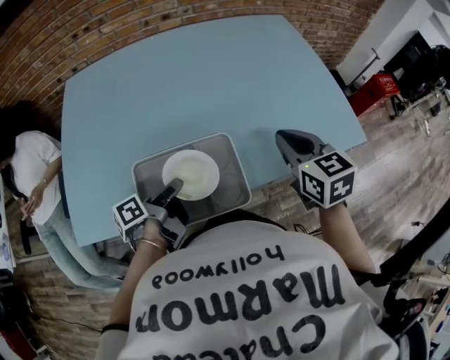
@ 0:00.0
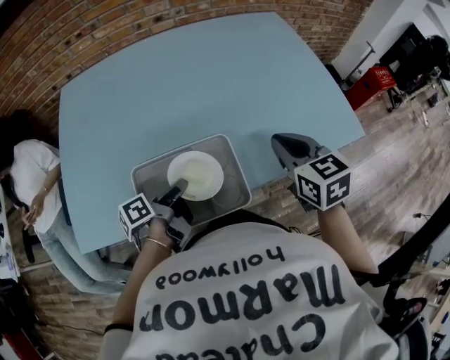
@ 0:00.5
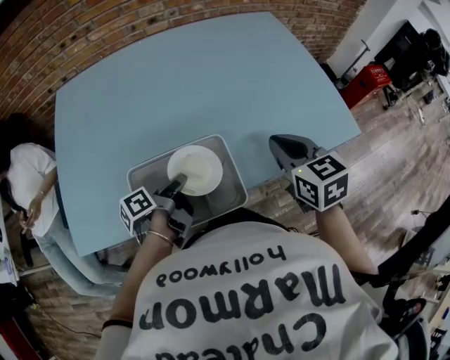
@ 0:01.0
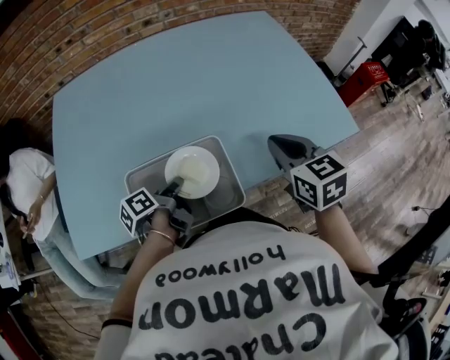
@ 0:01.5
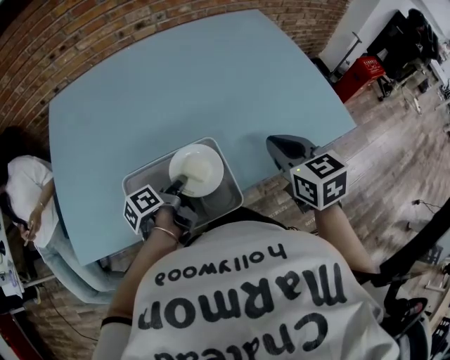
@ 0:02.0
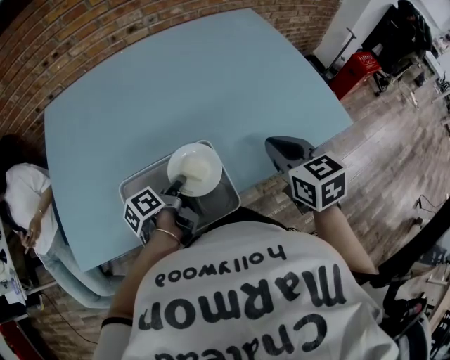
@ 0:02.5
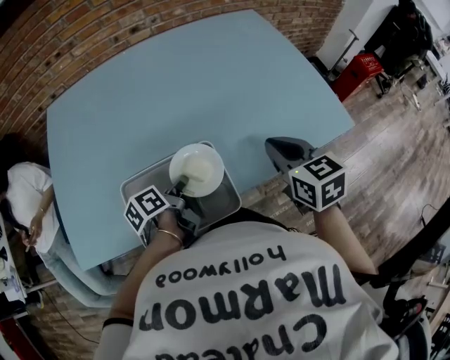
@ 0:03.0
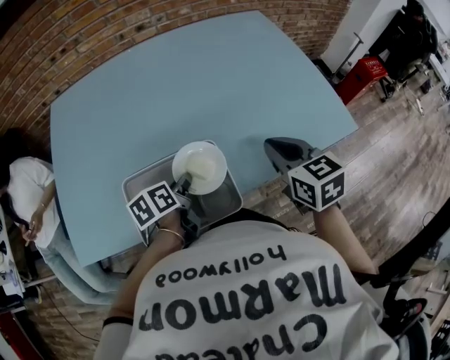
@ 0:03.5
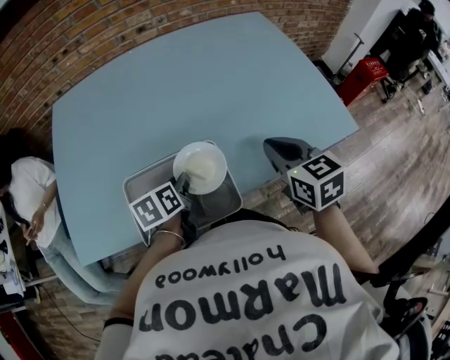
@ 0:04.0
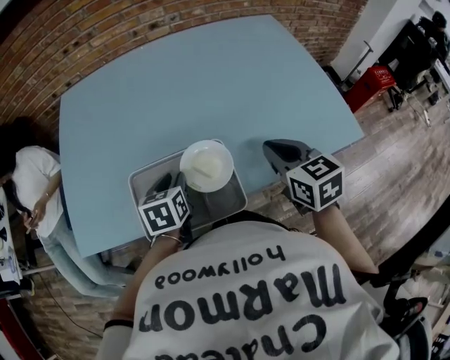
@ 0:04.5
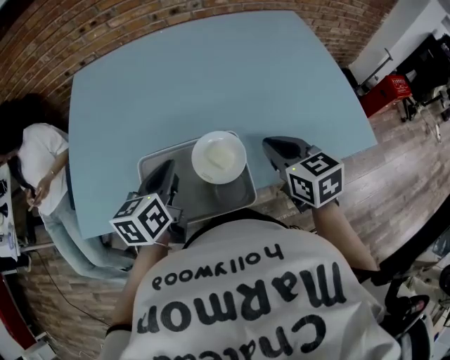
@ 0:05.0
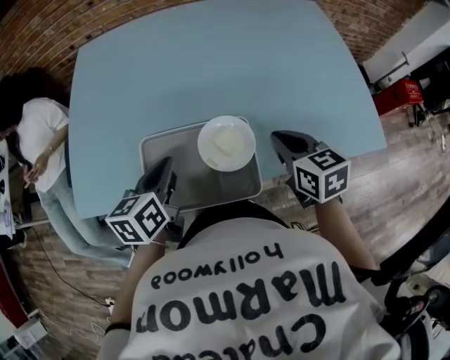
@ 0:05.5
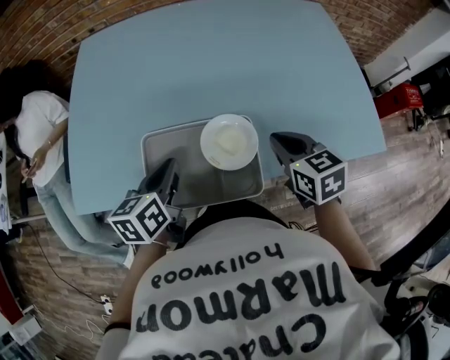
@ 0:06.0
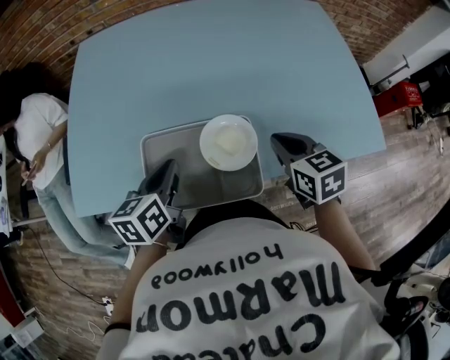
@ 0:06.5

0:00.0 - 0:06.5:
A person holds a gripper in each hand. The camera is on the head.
0:04.5 - 0:06.5: The right gripper travels downward by about 5 cm.

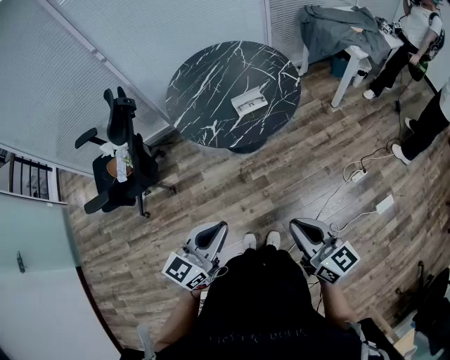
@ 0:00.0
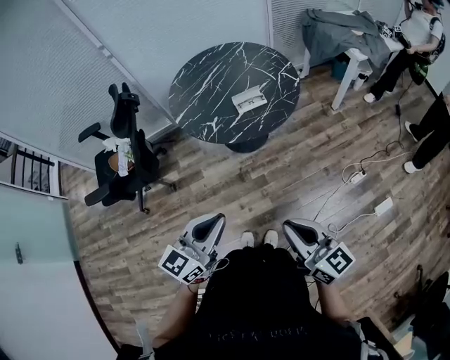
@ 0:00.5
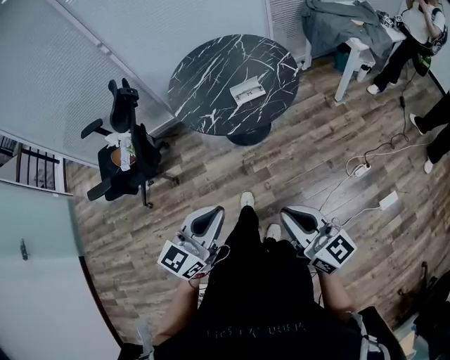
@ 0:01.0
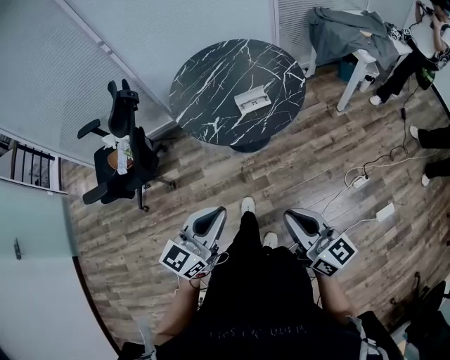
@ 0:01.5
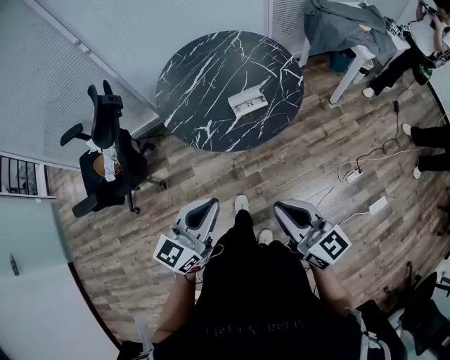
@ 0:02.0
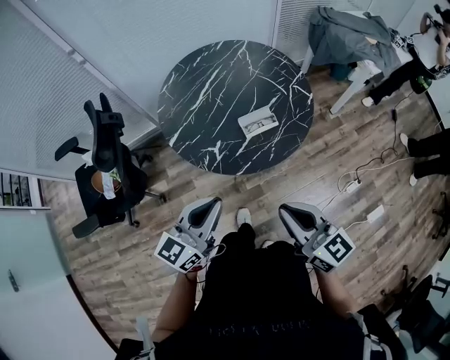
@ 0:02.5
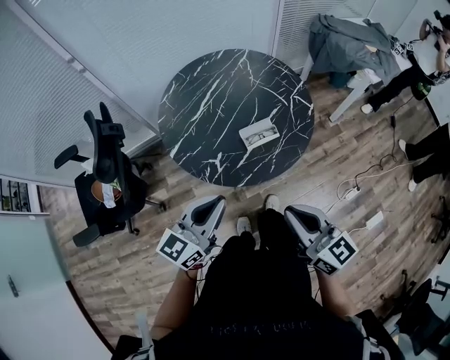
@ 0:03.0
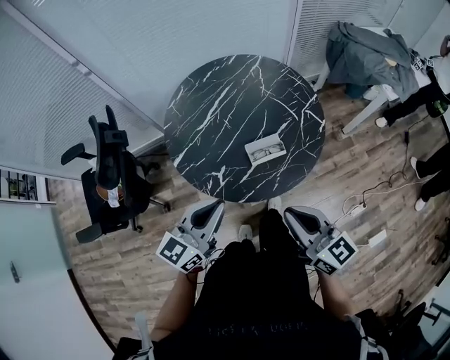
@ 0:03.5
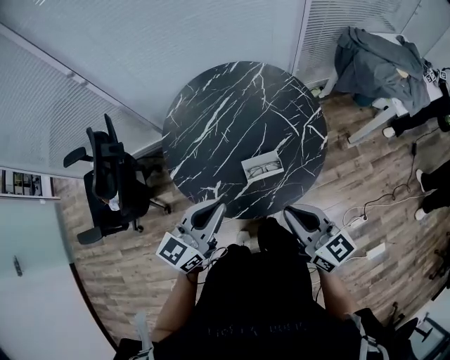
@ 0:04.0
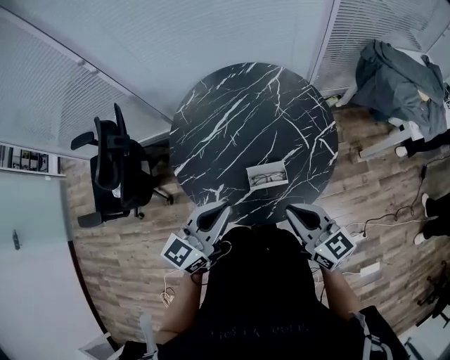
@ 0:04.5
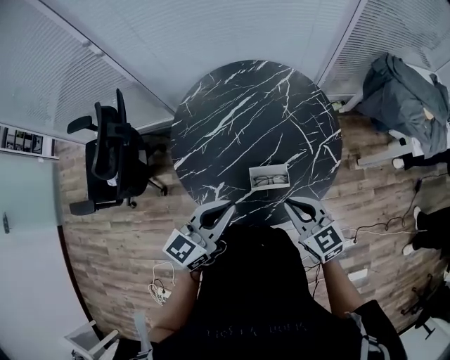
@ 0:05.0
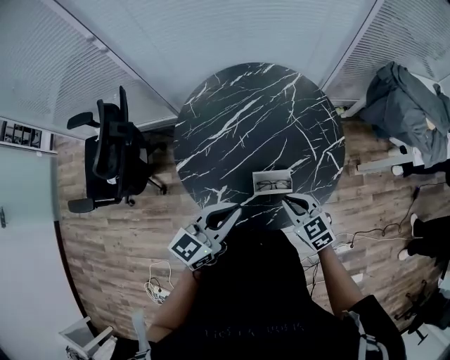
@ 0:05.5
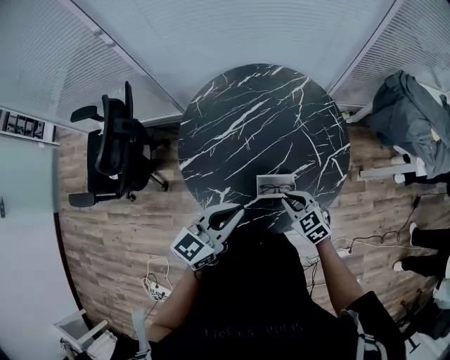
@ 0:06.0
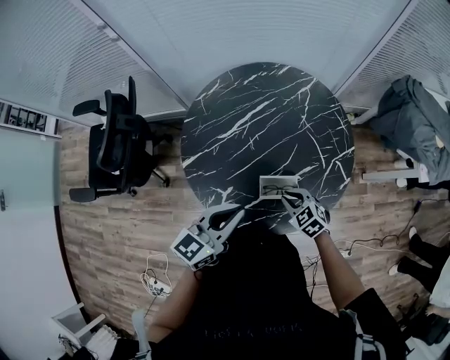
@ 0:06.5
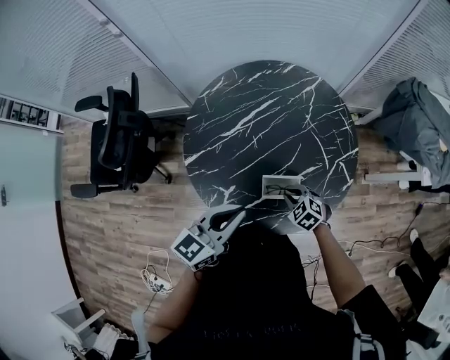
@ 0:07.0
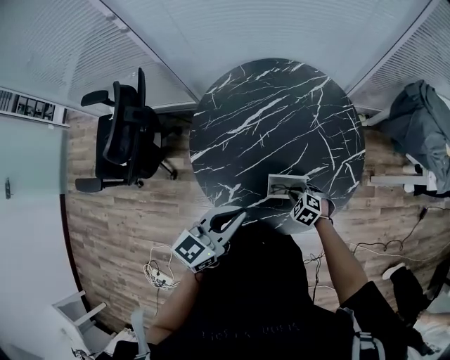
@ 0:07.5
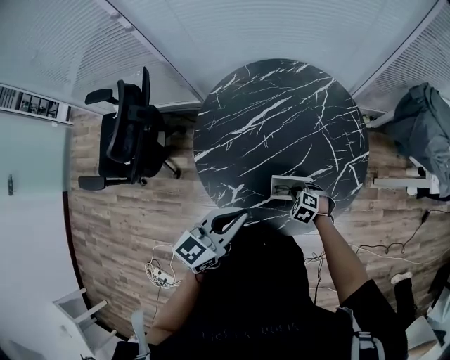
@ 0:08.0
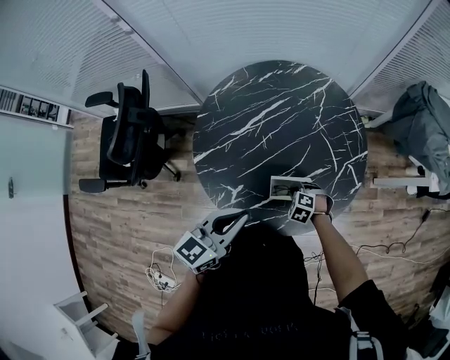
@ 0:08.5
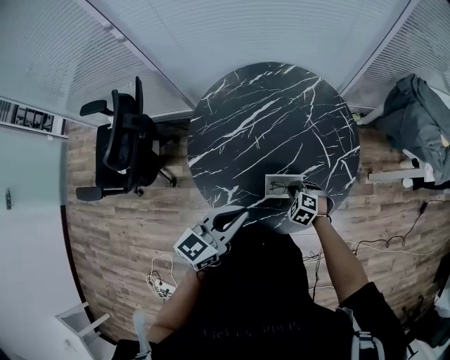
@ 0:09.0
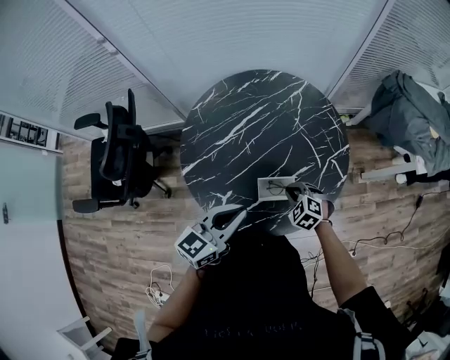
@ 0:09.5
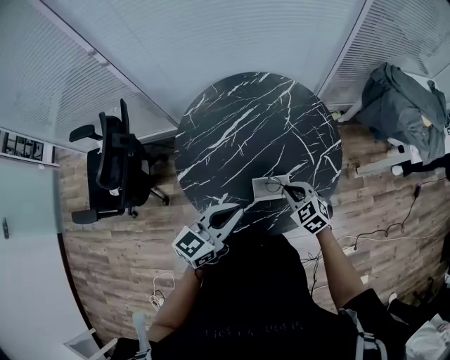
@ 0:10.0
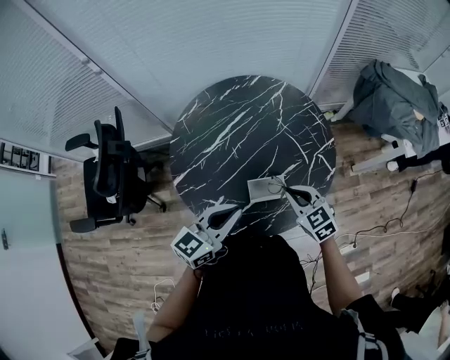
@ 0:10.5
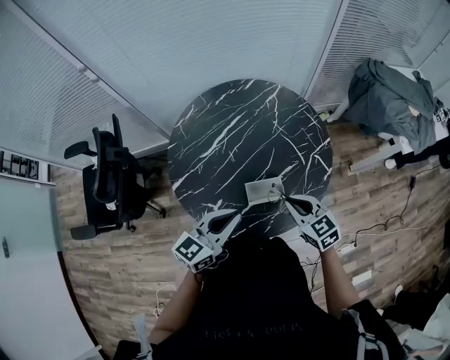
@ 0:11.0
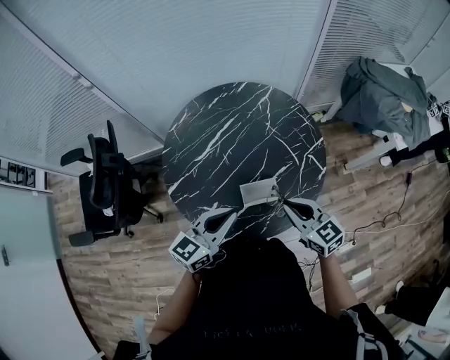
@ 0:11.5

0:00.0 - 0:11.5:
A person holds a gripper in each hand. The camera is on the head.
0:00.0 - 0:02.0: Both grippers move forward, some 10 cm.
0:02.0 - 0:04.0: The two grippers go approximately 30 cm forward.
0:04.0 - 0:06.0: The right gripper is displaced downward and forward by some 25 cm, and angles its fingers downward, by about 40 degrees. The left gripper moves roughly 5 cm.
0:06.0 - 0:07.5: The right gripper shifts roughly 10 cm downward, and changes its angle by about 30 degrees.
0:07.5 - 0:09.5: The right gripper travels upward by some 10 cm.
0:09.5 - 0:11.5: The right gripper is displaced upward by some 15 cm, and tilts its fingers approximately 40 degrees upward.

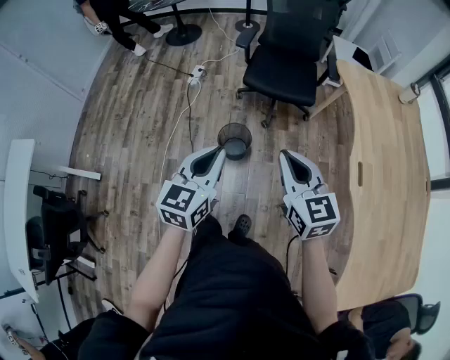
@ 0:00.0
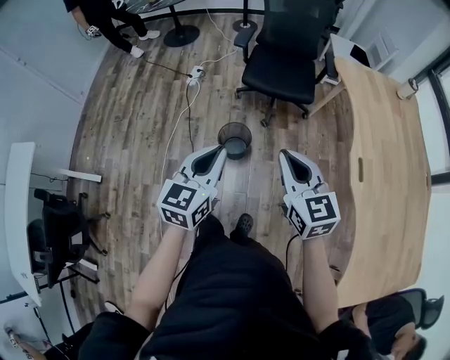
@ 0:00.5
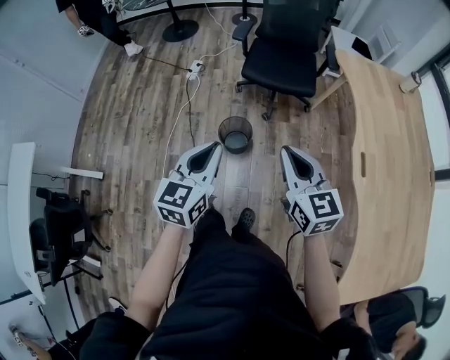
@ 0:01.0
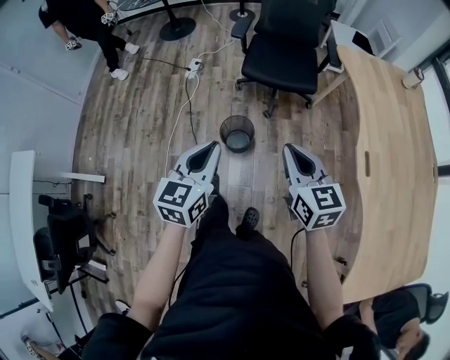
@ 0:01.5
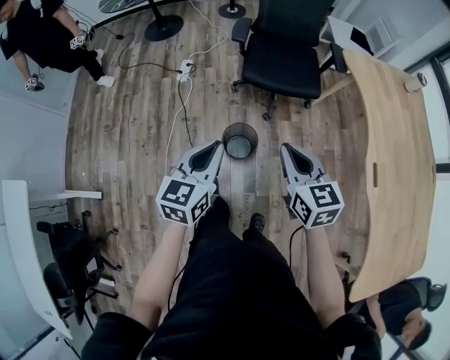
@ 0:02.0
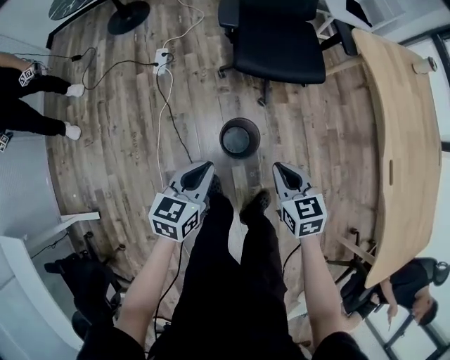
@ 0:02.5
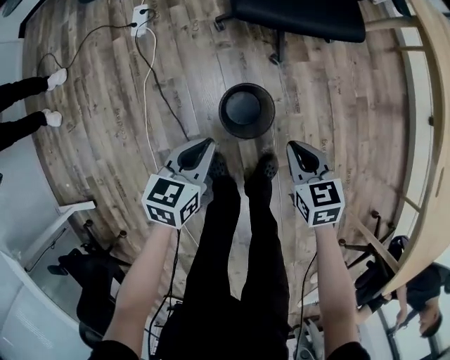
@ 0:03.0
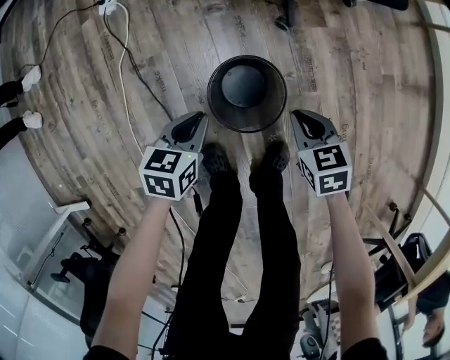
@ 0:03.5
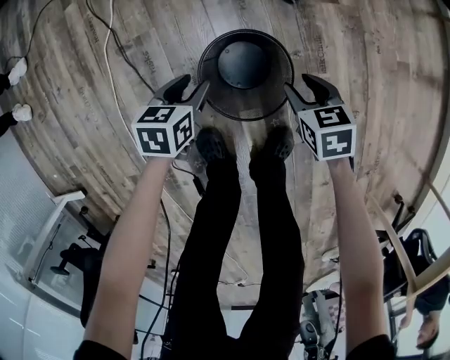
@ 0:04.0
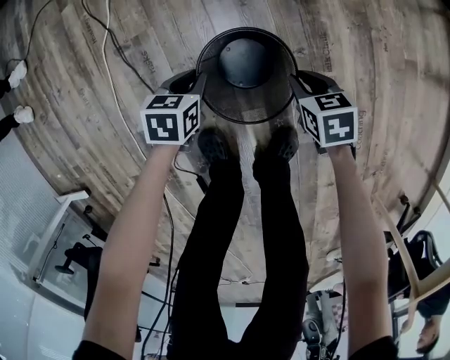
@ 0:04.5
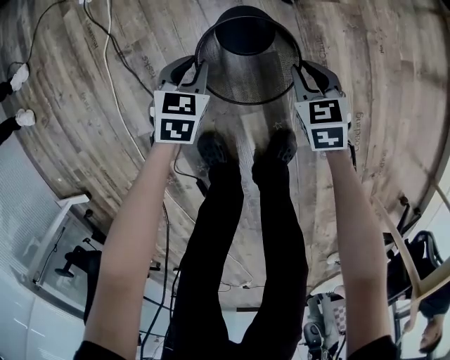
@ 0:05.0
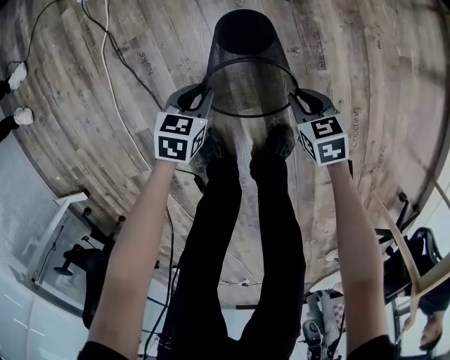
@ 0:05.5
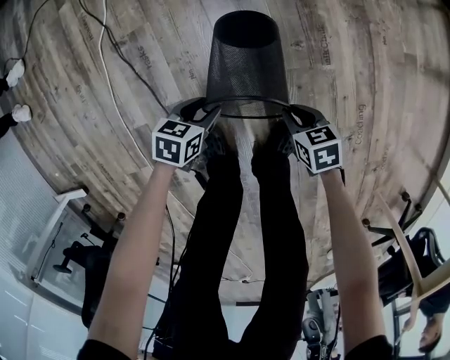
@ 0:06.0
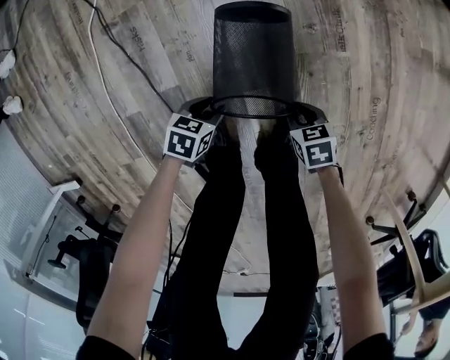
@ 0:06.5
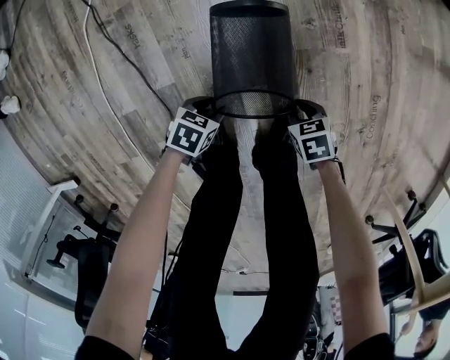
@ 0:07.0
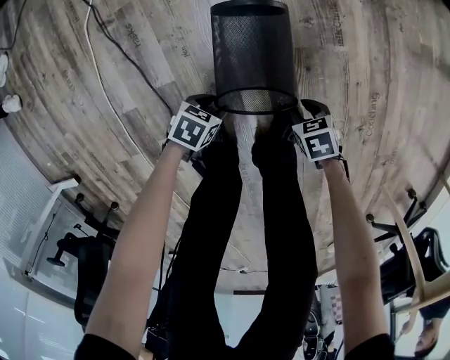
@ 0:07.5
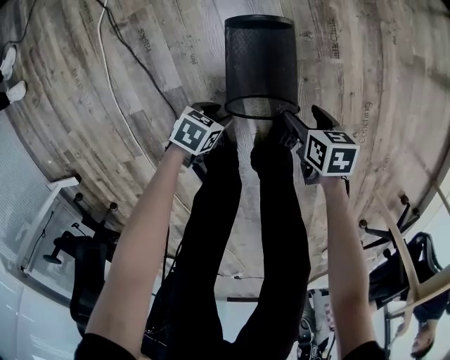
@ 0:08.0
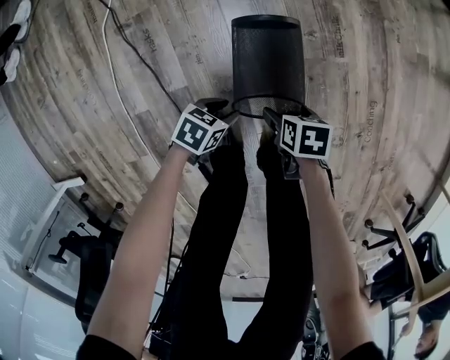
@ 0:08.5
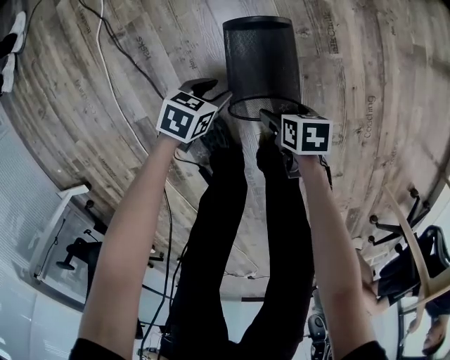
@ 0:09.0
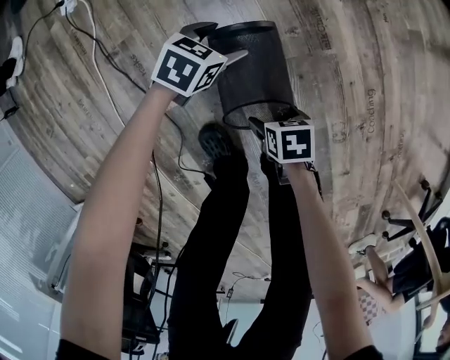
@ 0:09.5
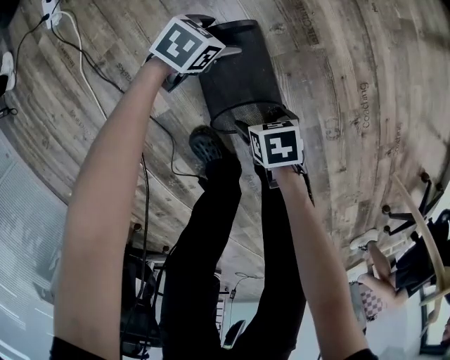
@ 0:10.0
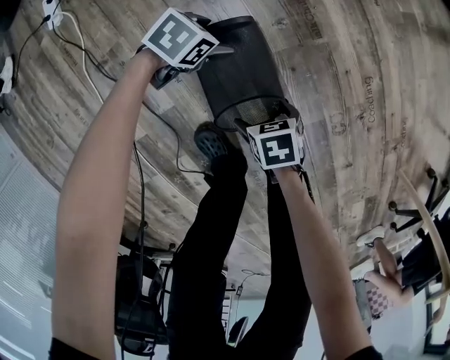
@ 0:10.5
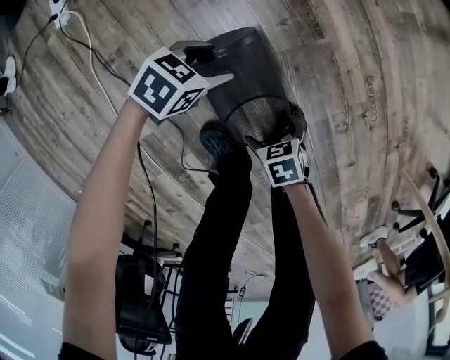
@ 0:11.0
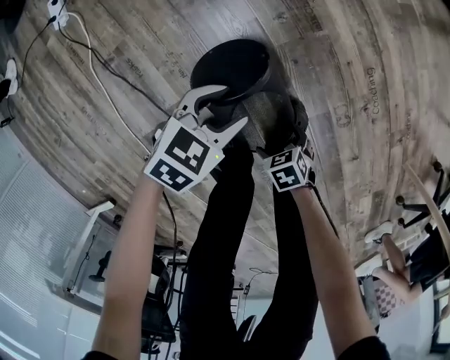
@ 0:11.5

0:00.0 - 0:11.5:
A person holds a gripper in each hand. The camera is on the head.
0:00.0 - 0:02.0: The right gripper goes approximately 15 cm forward, to the left and downward. The left gripper shifts about 15 cm forward and to the left.
0:02.0 - 0:04.0: Both grippers move downward, some 70 cm. The left gripper tips its fingers downward by about 40 degrees, and opens. The right gripper tips its fingers downward by some 40 degrees.
0:04.0 - 0:06.0: The left gripper shifts by approximately 15 cm. The right gripper shifts by about 15 cm.
0:06.0 - 0:07.5: The left gripper changes place by roughly 15 cm. The right gripper goes roughly 10 cm downward.
0:07.5 - 0:09.5: The left gripper ends up approximately 25 cm from where it was, rotates some 30 degrees, and opens up. The right gripper shifts by roughly 10 cm, changes its angle by approximately 30 degrees, and opens.
0:09.5 - 0:11.5: The left gripper shifts by about 20 cm. The right gripper shifts by roughly 15 cm.
